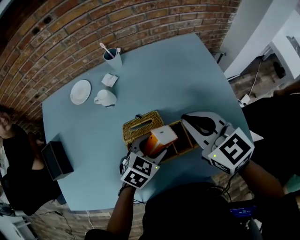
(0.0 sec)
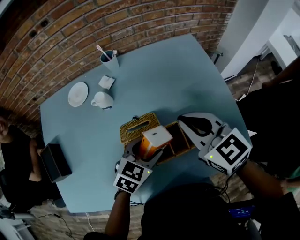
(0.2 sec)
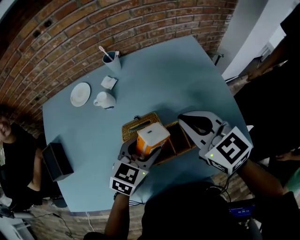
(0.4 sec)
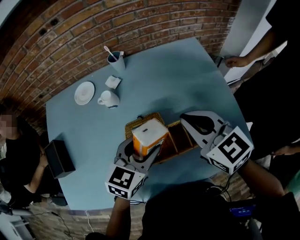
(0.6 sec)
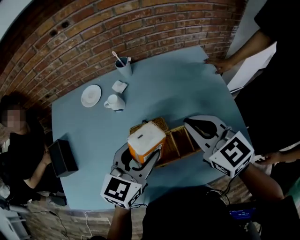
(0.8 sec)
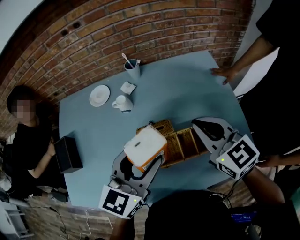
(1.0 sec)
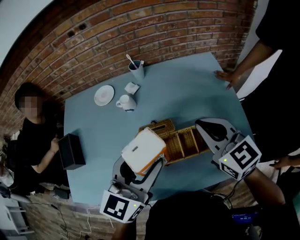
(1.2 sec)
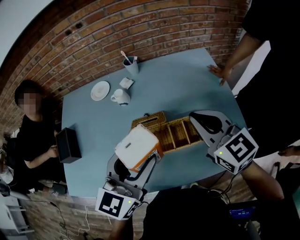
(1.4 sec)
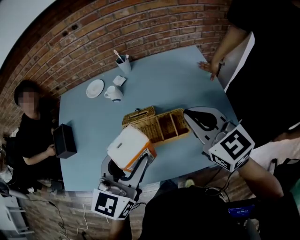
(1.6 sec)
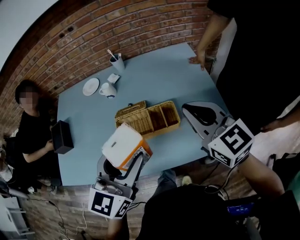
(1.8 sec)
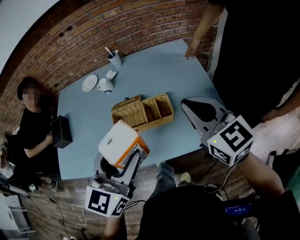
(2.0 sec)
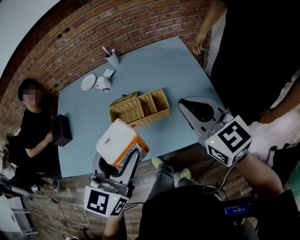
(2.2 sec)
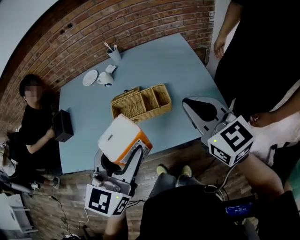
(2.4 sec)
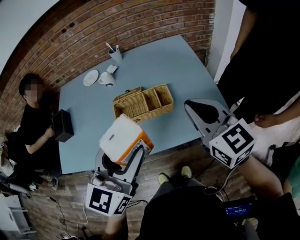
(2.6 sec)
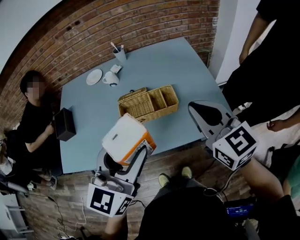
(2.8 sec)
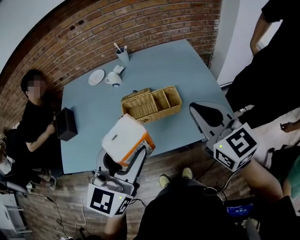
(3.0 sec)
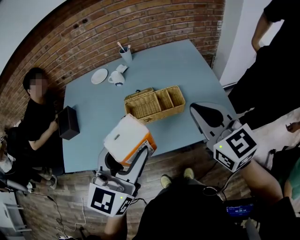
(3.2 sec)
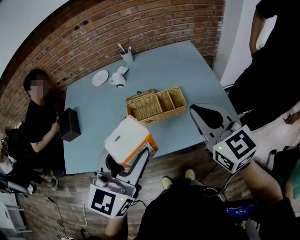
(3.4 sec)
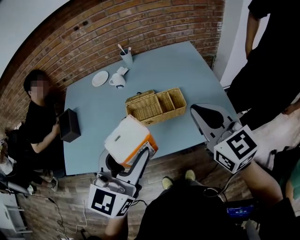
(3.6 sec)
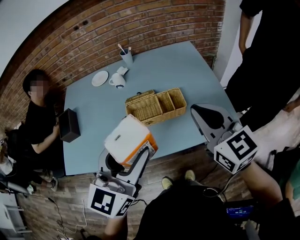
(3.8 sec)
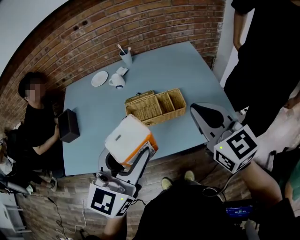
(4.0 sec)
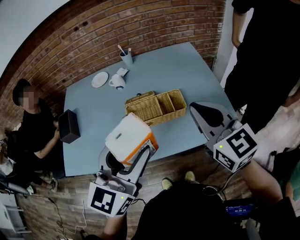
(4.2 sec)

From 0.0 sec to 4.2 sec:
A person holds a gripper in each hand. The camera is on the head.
From 0.0 sec to 1.4 sec: The left gripper heads upward, covering roughly 25 cm, and tips its fingers upward by about 40 degrees. The right gripper heads upward, covering some 5 cm.
From 1.4 sec to 2.8 sec: Both grippers move backward, some 20 cm.
From 2.8 sec to 4.2 sec: There are only small adjustments of the grippers.

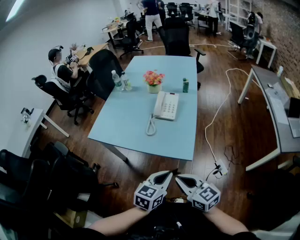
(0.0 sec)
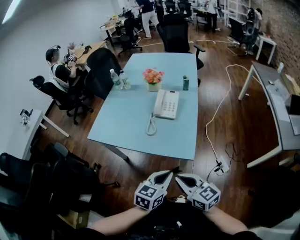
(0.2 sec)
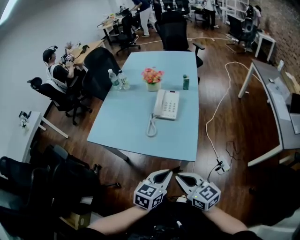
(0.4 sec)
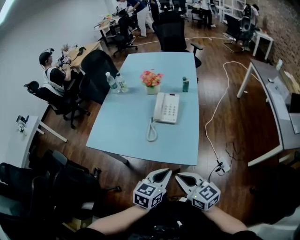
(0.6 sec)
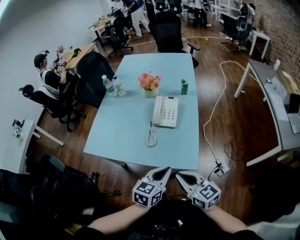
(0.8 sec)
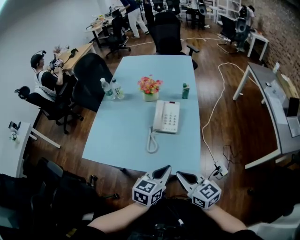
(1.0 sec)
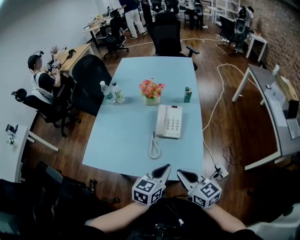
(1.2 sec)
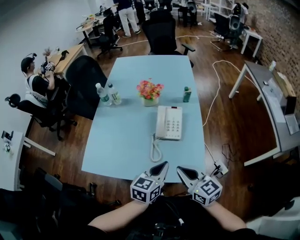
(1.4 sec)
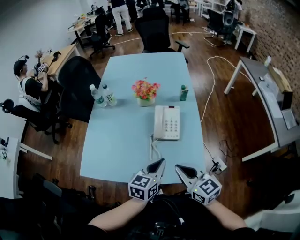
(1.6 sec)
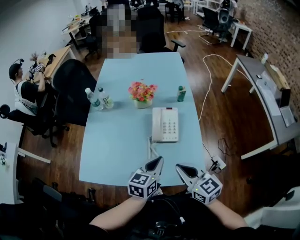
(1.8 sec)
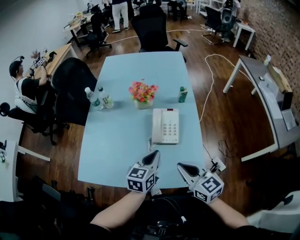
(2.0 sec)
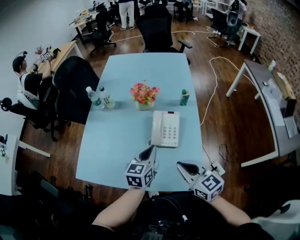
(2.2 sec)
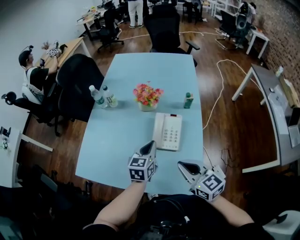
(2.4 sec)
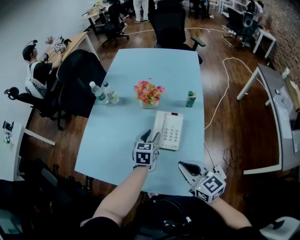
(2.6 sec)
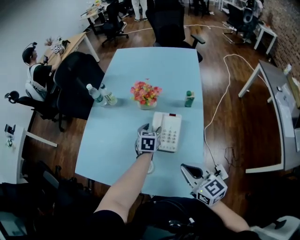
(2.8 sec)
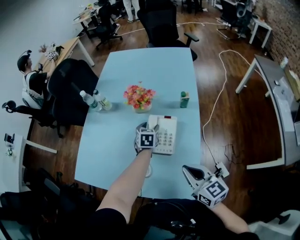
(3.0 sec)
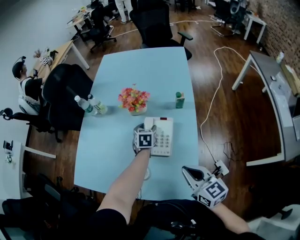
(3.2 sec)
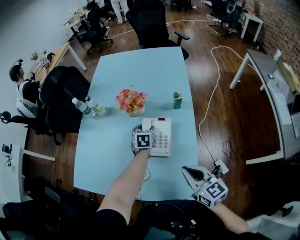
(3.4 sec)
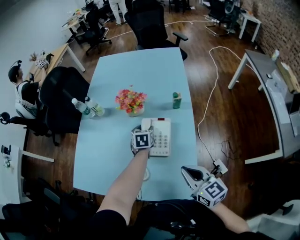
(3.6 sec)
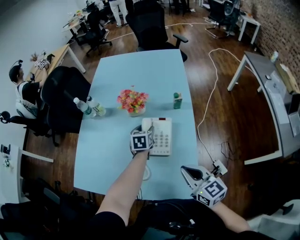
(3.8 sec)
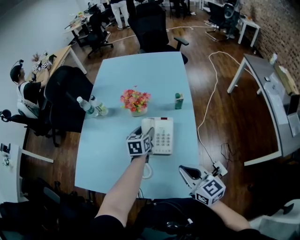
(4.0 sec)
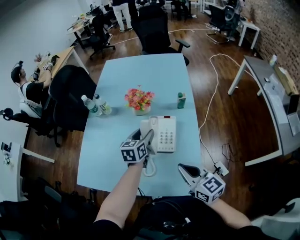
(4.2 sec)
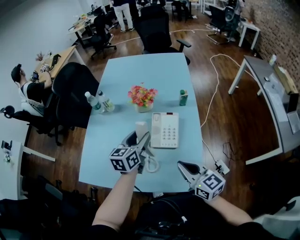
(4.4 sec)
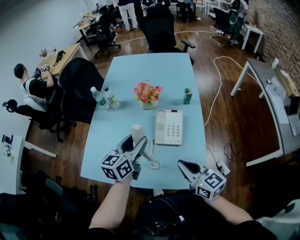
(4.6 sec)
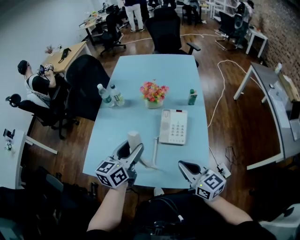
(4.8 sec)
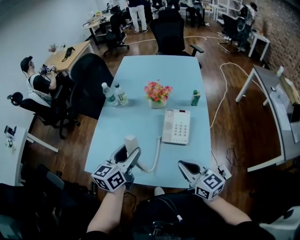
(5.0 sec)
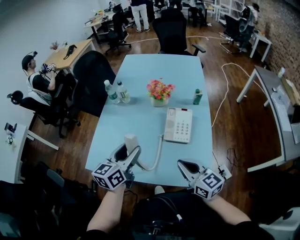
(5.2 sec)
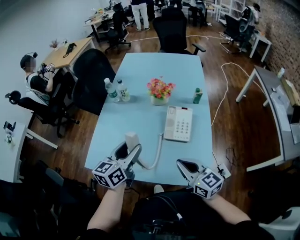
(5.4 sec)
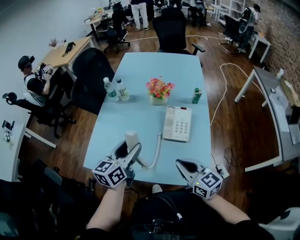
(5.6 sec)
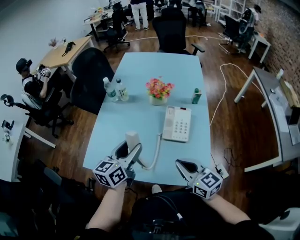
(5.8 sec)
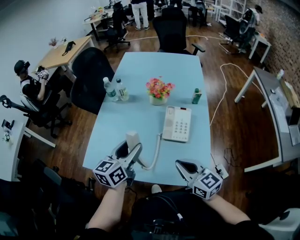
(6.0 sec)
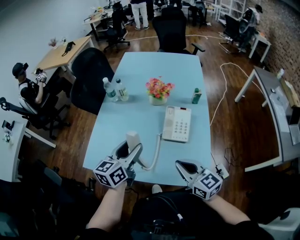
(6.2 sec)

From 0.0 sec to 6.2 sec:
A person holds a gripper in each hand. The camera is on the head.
From 0.0 sec to 1.6 sec: The two grippers go roughly 25 cm forward.
From 1.6 sec to 3.2 sec: The left gripper goes about 35 cm forward and downward, turns by approximately 30 degrees, and opens its fingers; the right gripper is displaced to the right and forward by approximately 15 cm.
From 3.2 sec to 4.6 sec: The left gripper goes about 30 cm upward, backward and to the left, and angles its fingers upward, by approximately 30 degrees. Meanwhile the right gripper heads to the left, covering some 10 cm.
From 4.6 sec to 6.2 sec: The right gripper is displaced to the left by about 5 cm. The left gripper heads to the left and backward, covering approximately 10 cm.

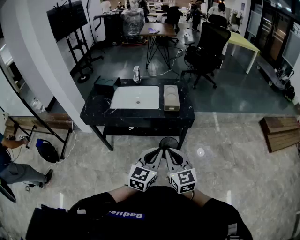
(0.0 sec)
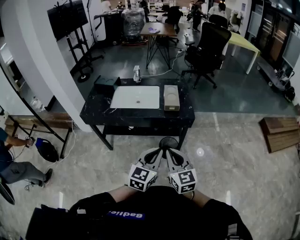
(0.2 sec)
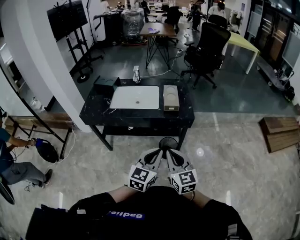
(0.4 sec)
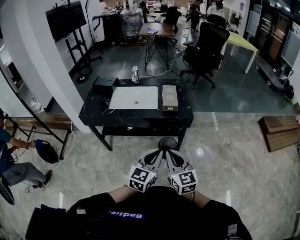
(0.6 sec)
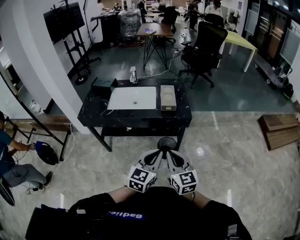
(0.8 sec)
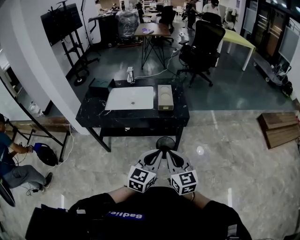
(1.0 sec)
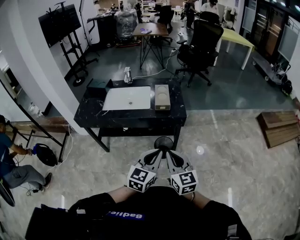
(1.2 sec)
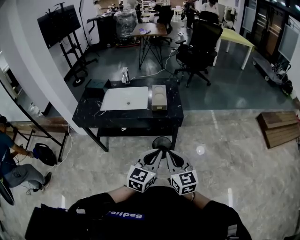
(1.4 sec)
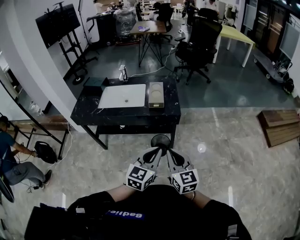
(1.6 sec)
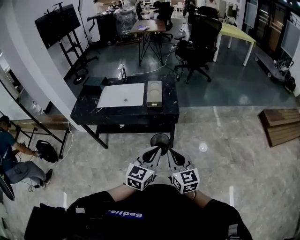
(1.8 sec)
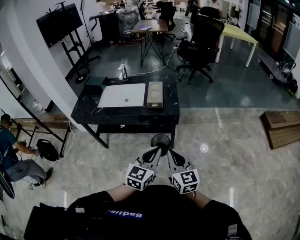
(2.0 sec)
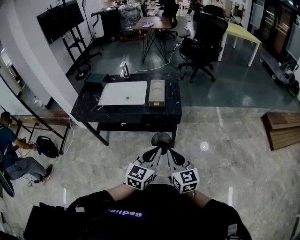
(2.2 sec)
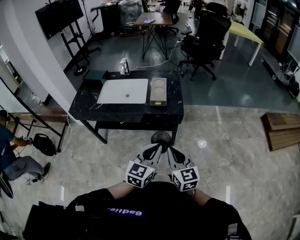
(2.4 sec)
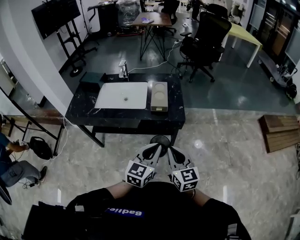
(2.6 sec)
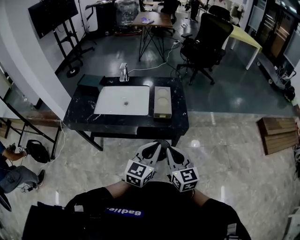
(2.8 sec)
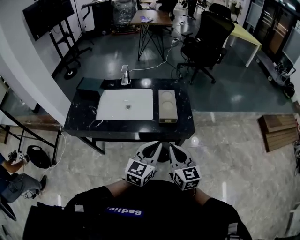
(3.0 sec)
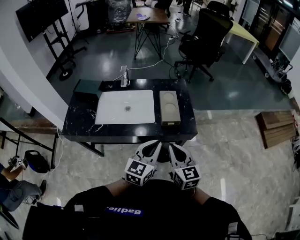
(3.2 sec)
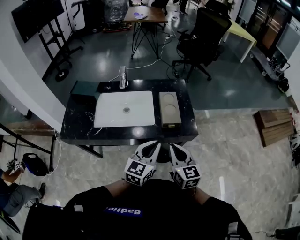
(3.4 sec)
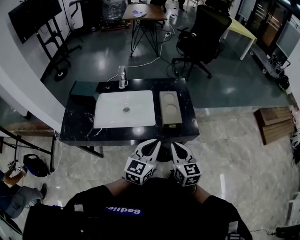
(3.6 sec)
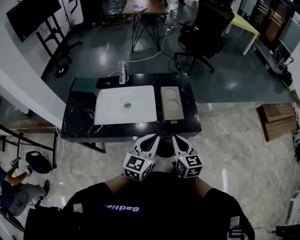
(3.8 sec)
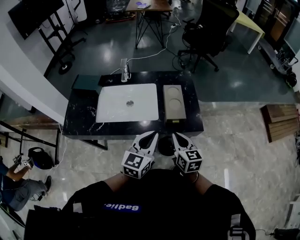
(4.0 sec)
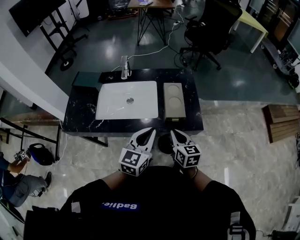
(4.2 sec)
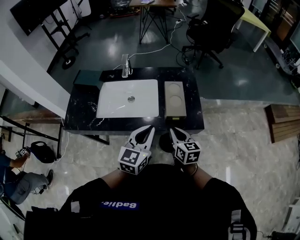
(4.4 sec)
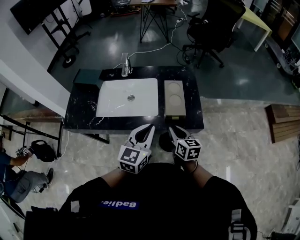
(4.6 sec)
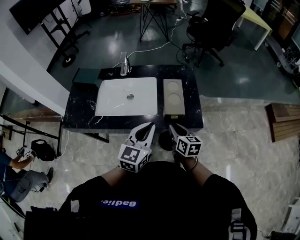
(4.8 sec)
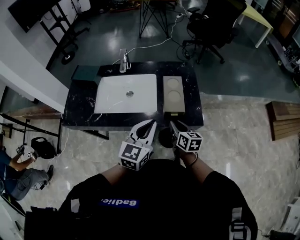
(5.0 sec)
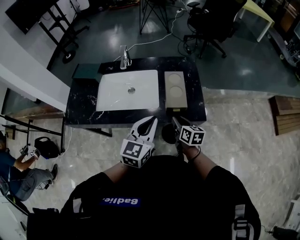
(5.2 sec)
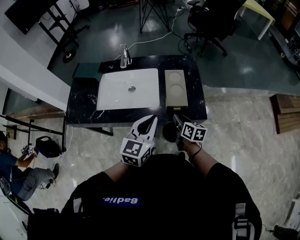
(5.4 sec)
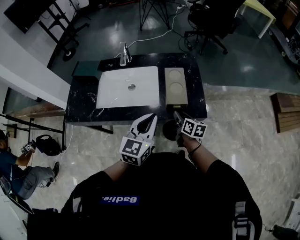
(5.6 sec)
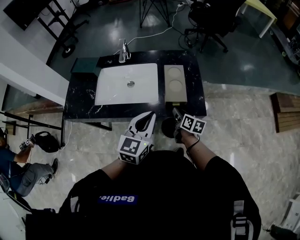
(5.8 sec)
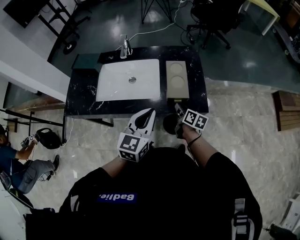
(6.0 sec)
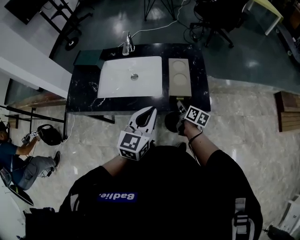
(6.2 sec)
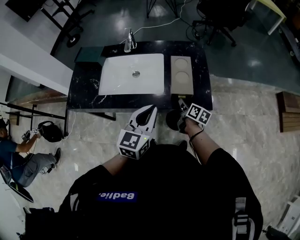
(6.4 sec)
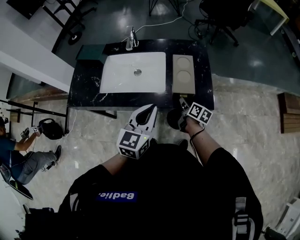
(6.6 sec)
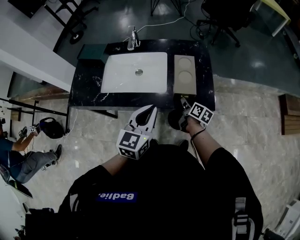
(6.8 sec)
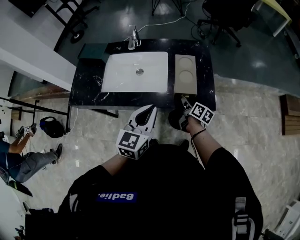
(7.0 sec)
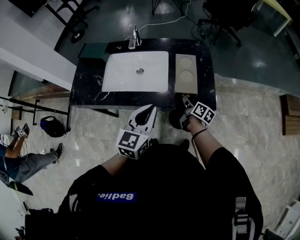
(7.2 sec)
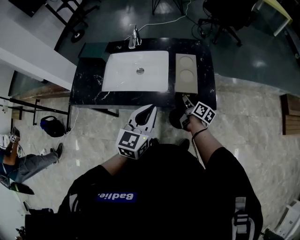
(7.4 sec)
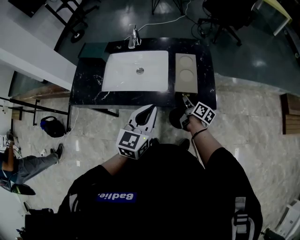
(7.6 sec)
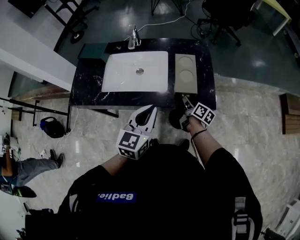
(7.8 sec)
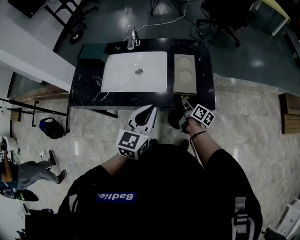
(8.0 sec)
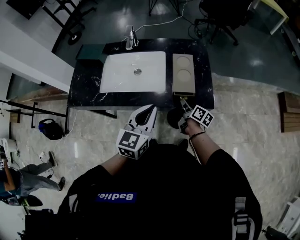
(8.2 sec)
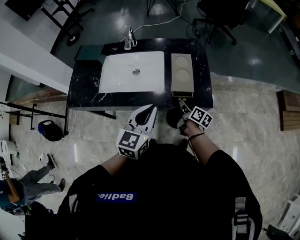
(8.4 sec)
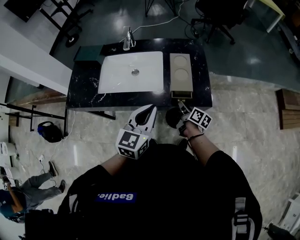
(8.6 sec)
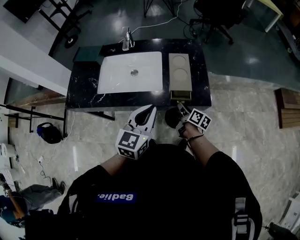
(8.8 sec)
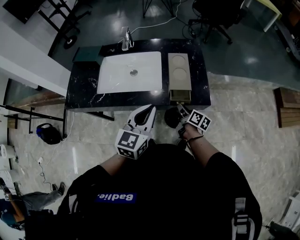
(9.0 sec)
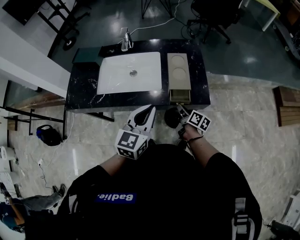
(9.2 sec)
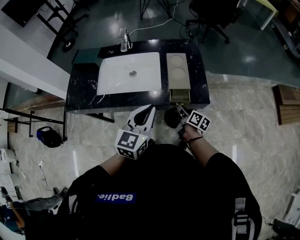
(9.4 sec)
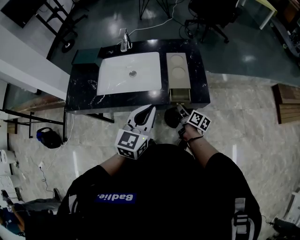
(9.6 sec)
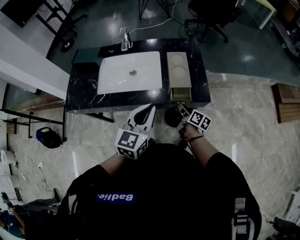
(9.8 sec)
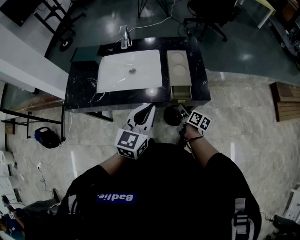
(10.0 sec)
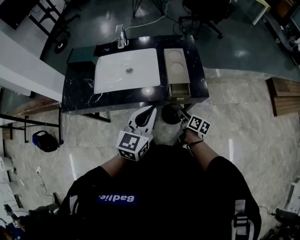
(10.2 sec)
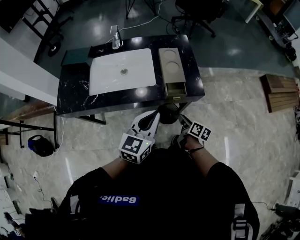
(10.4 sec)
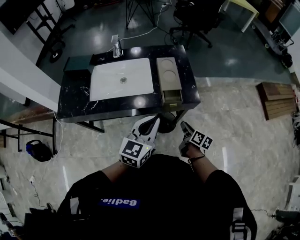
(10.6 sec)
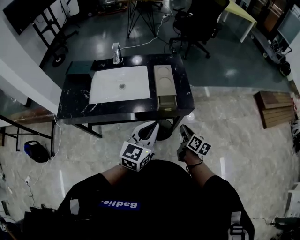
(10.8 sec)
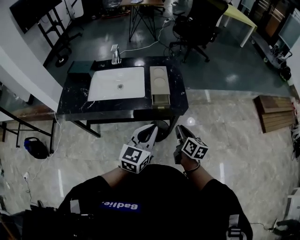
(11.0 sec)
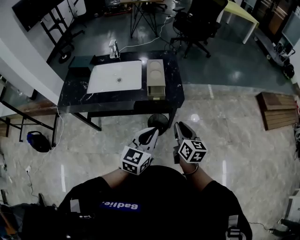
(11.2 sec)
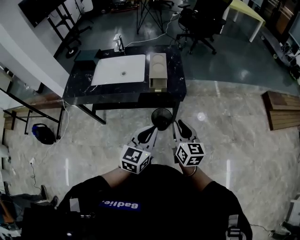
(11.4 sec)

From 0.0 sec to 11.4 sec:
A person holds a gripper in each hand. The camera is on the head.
From 0.0 sec to 1.4 sec: The grippers both shift to the right by some 10 cm.
From 1.4 sec to 2.8 sec: Both grippers travel together forward, roughly 15 cm.
From 2.8 sec to 4.2 sec: The left gripper goes approximately 20 cm forward and to the left. The right gripper goes some 20 cm forward, downward and to the left.
From 4.2 sec to 5.6 sec: The right gripper goes approximately 10 cm downward and forward, rotates roughly 20 degrees, and opens up.
From 5.6 sec to 7.2 sec: The right gripper changes place by roughly 5 cm, and rotates approximately 20 degrees.
From 7.2 sec to 8.6 sec: The grippers make only small movements.
From 8.6 sec to 10.0 sec: The grippers move only a little.
From 10.0 sec to 11.4 sec: The left gripper heads backward and to the right, covering some 25 cm. Meanwhile the right gripper is displaced backward, upward and to the right by roughly 30 cm, and twists roughly 40 degrees counterclockwise, seen from behind.

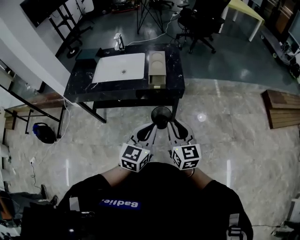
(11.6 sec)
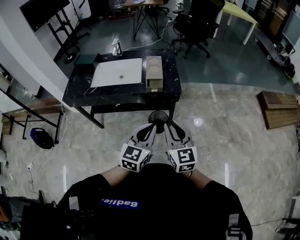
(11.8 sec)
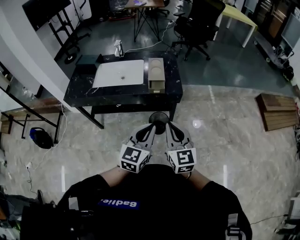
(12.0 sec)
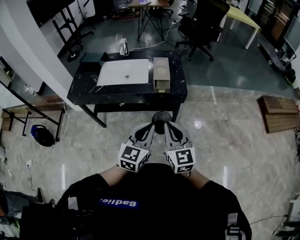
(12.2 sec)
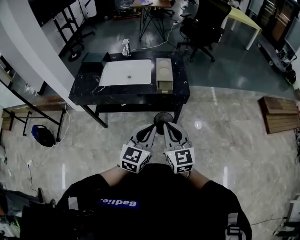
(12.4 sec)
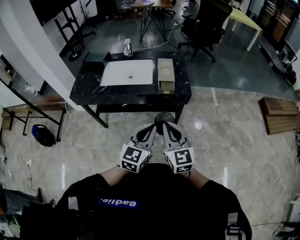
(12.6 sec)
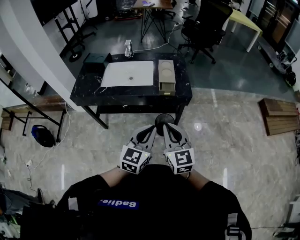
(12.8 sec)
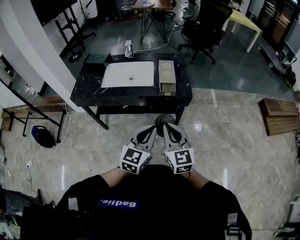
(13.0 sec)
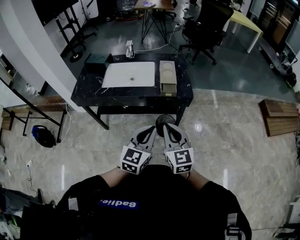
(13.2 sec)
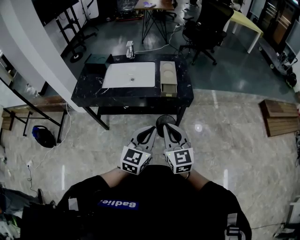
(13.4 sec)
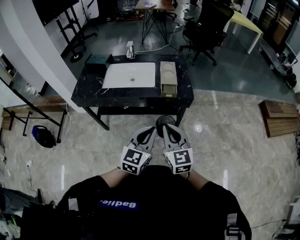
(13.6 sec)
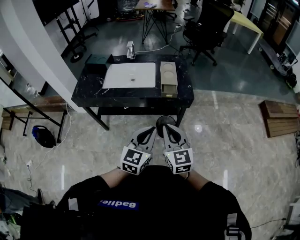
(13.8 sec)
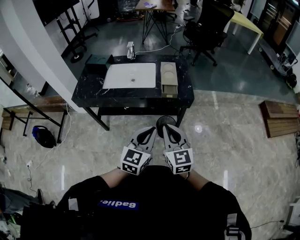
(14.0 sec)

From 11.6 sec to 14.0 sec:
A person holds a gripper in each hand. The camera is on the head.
From 11.6 sec to 12.8 sec: Both grippers travel together to the left, about 10 cm.
From 12.8 sec to 14.0 sec: The grippers stay close to where they were, moving slightly.
